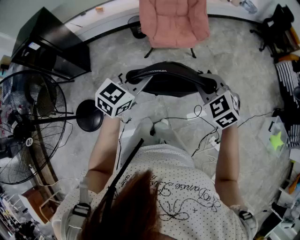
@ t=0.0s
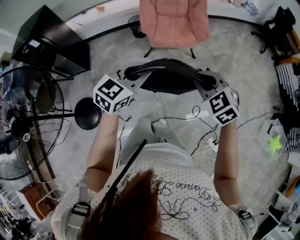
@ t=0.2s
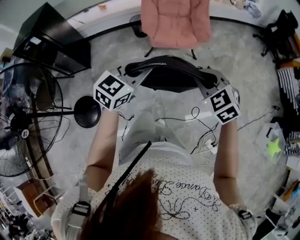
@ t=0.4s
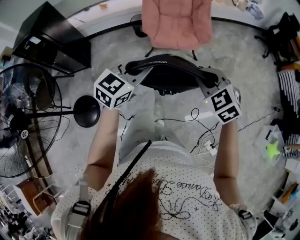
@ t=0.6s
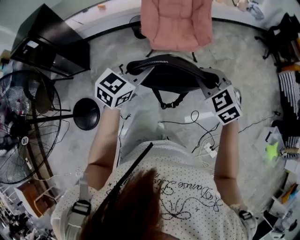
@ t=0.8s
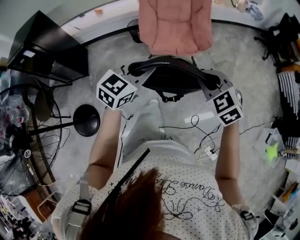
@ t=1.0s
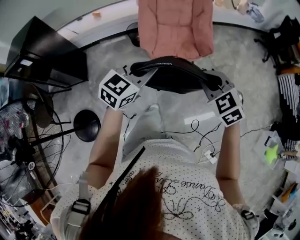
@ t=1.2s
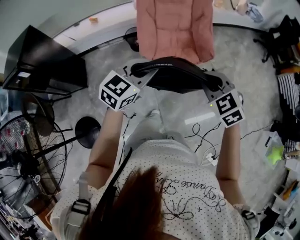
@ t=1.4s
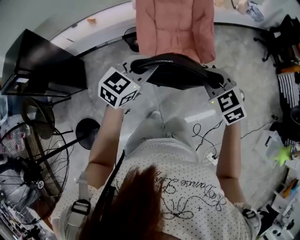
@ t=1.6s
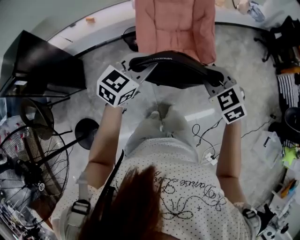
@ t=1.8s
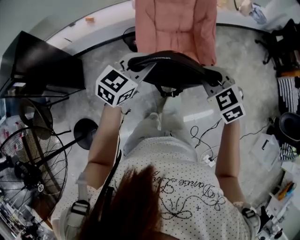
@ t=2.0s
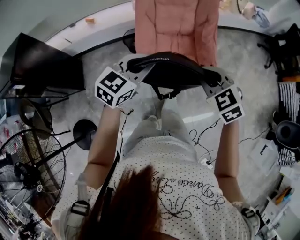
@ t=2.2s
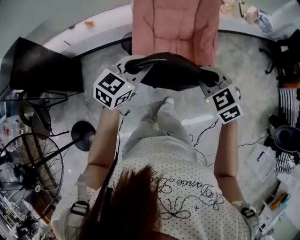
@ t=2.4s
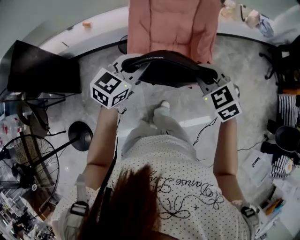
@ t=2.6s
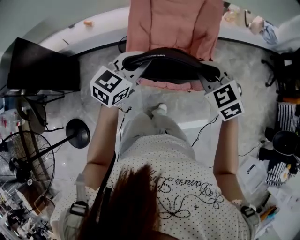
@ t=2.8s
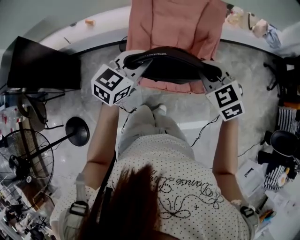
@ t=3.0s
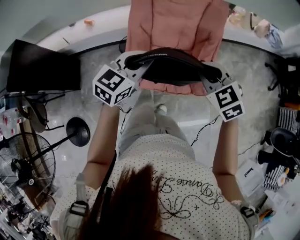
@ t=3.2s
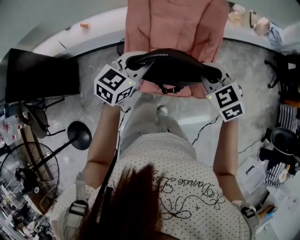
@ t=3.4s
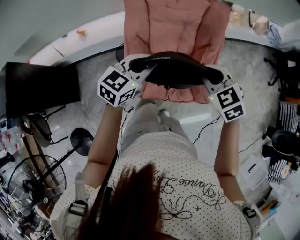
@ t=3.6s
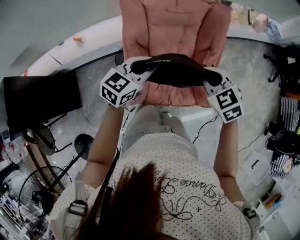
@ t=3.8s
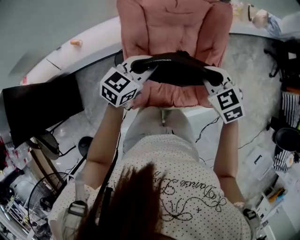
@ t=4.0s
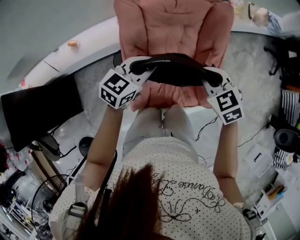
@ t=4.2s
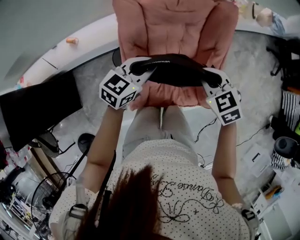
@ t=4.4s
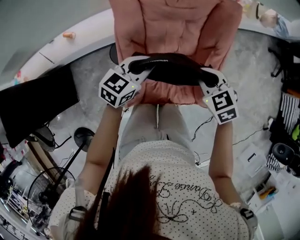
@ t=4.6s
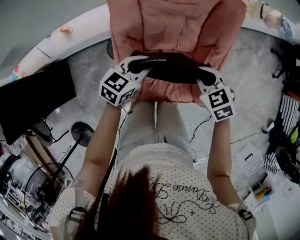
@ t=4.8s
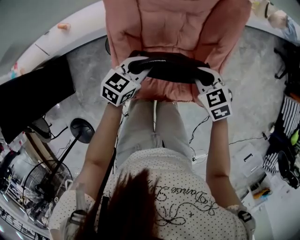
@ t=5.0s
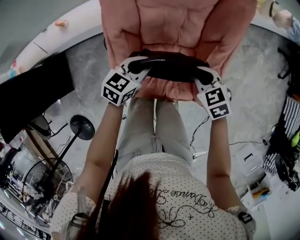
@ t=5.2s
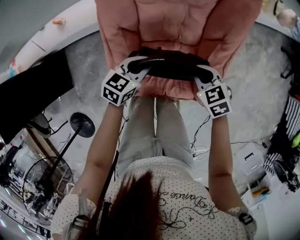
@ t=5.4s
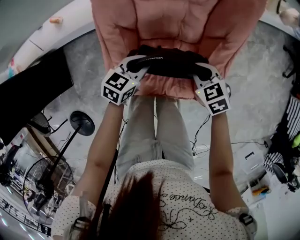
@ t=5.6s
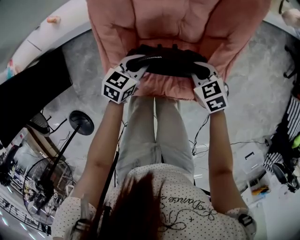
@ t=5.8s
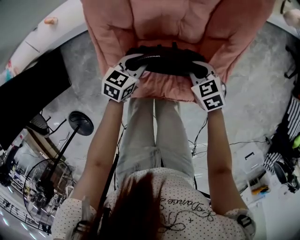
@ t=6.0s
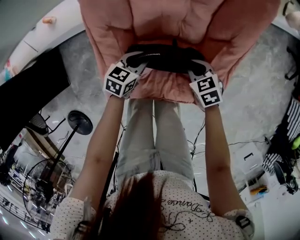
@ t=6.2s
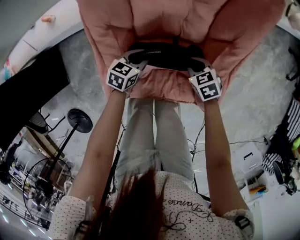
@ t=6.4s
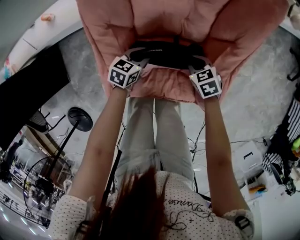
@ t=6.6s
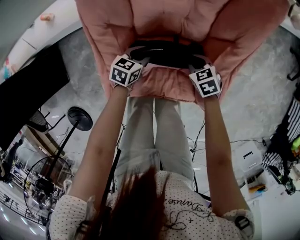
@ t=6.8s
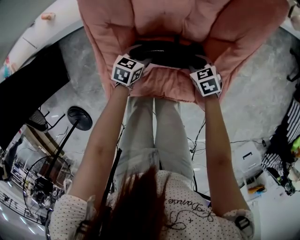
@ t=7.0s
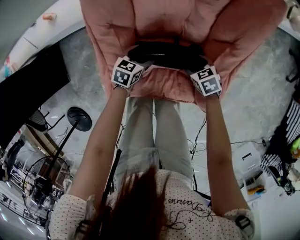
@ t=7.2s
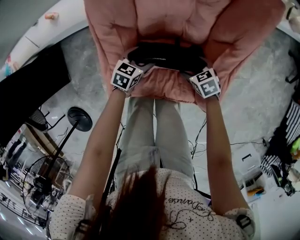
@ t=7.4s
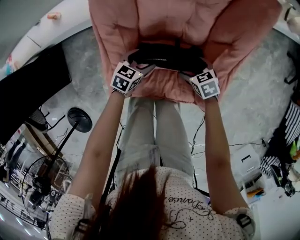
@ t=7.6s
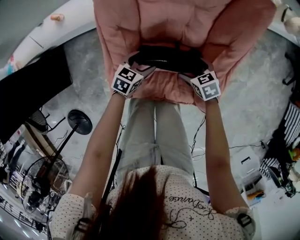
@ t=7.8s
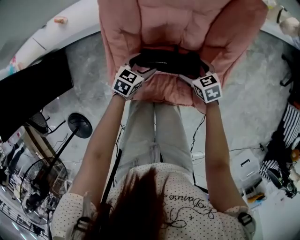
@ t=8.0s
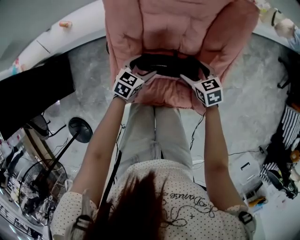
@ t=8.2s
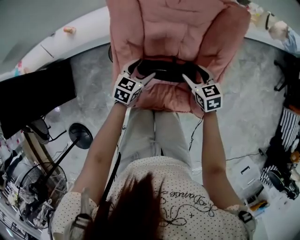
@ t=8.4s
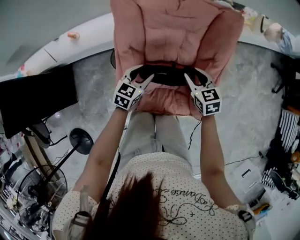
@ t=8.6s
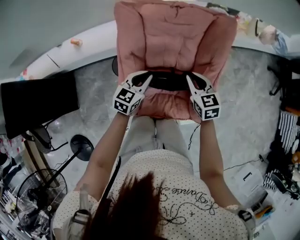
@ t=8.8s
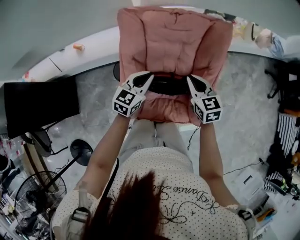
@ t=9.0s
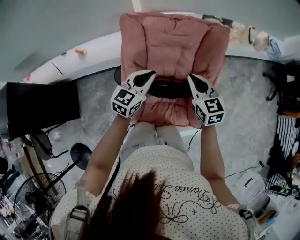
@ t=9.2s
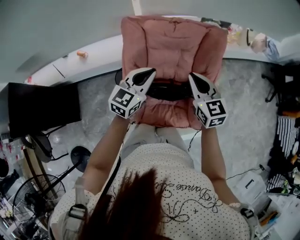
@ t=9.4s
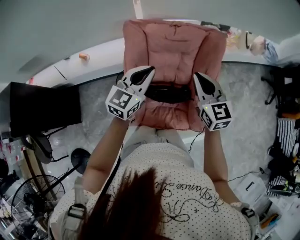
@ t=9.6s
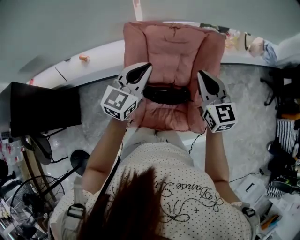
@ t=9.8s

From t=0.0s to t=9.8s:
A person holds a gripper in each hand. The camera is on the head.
From t=0.0s to t=1.4s: The grippers both shift forward by about 25 cm.
From t=1.4s to t=2.8s: Both grippers move forward, approximately 25 cm.
From t=2.8s to t=4.2s: The grippers both shift forward by approximately 20 cm.
From t=4.2s to t=5.6s: The two grippers go about 20 cm downward. The left gripper changes its angle by approximately 20 degrees.
From t=5.6s to t=7.0s: Both grippers travel together downward, some 15 cm. The left gripper opens up.
From t=7.0s to t=8.4s: The two grippers go approximately 15 cm upward. The right gripper changes its angle by about 20 degrees, and opens its fingers; the left gripper opens up.
From t=8.4s to t=9.8s: The two grippers go some 30 cm upward. The left gripper tilts its fingers about 30 degrees upward, and closes. The right gripper angles its fingers upward, by some 30 degrees, and closes its fingers.

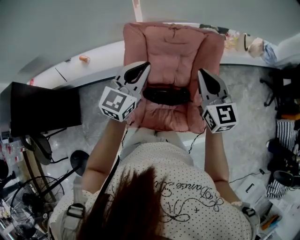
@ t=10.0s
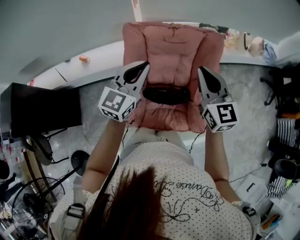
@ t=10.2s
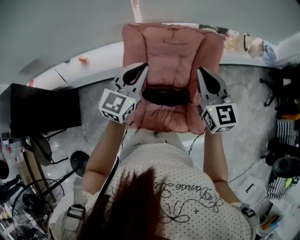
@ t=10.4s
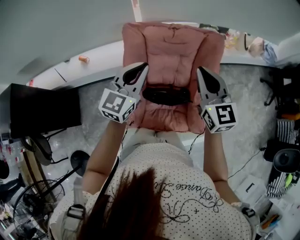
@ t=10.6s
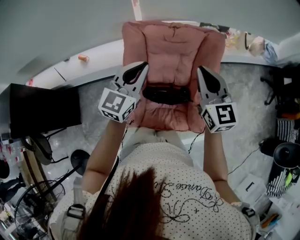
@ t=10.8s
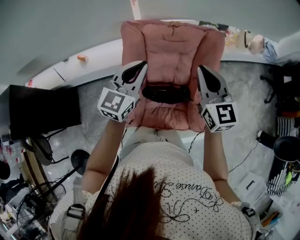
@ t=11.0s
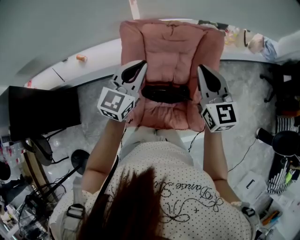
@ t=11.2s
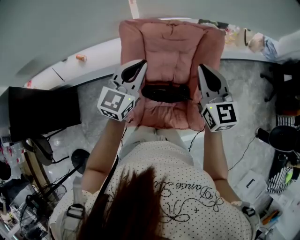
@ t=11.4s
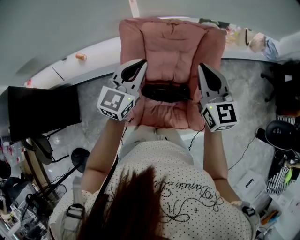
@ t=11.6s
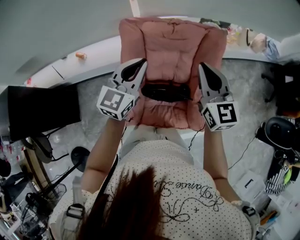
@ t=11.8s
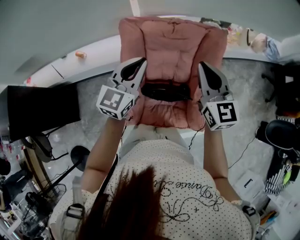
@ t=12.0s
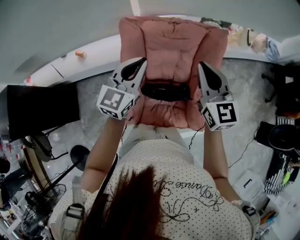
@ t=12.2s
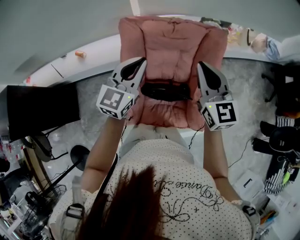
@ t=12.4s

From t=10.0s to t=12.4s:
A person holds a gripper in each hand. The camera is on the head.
From t=10.0s to t=12.4s: There are only small adjustments of the grippers.

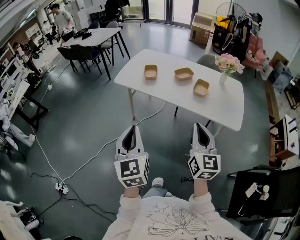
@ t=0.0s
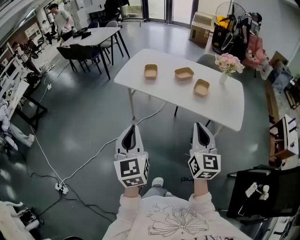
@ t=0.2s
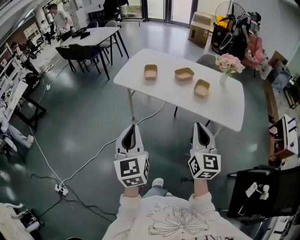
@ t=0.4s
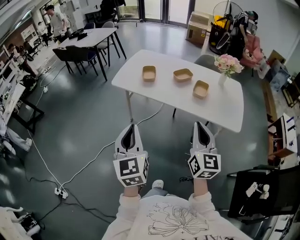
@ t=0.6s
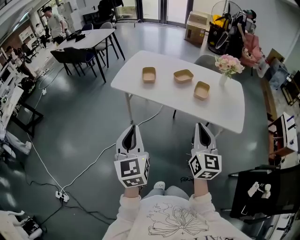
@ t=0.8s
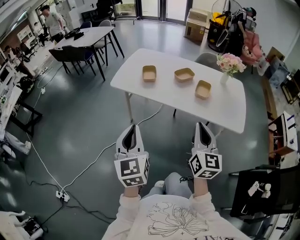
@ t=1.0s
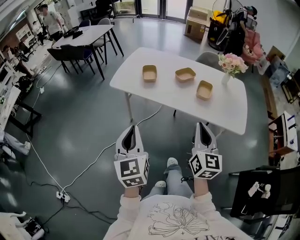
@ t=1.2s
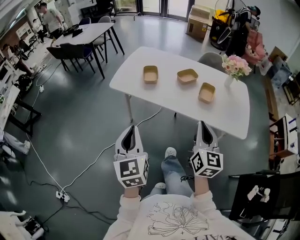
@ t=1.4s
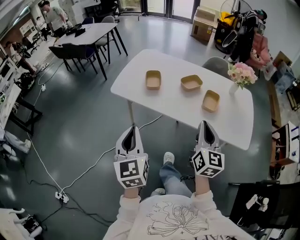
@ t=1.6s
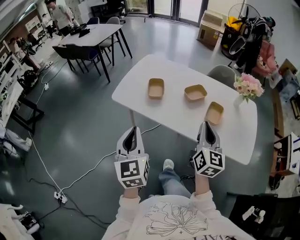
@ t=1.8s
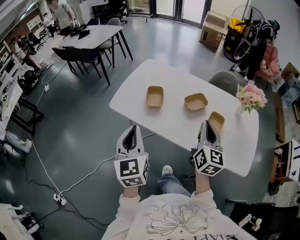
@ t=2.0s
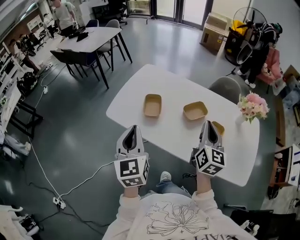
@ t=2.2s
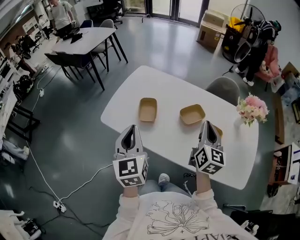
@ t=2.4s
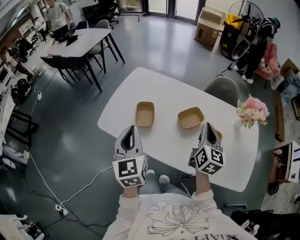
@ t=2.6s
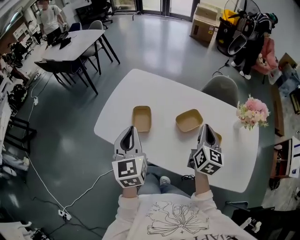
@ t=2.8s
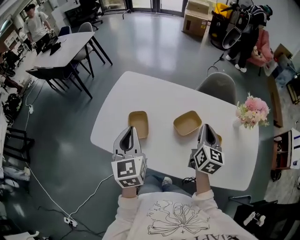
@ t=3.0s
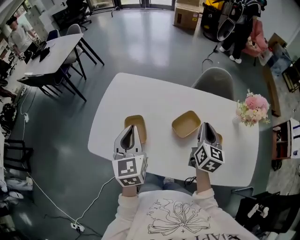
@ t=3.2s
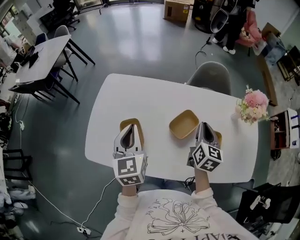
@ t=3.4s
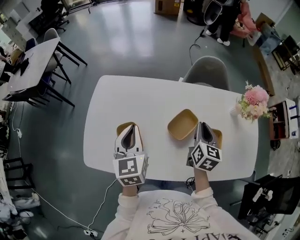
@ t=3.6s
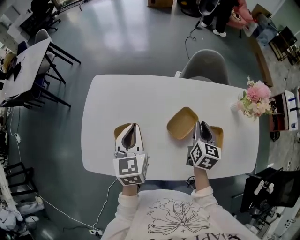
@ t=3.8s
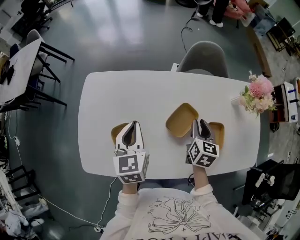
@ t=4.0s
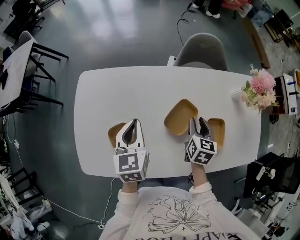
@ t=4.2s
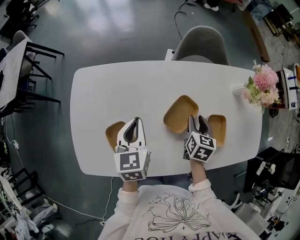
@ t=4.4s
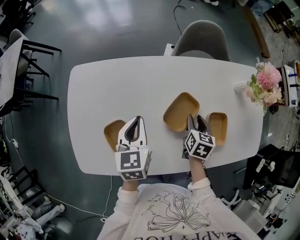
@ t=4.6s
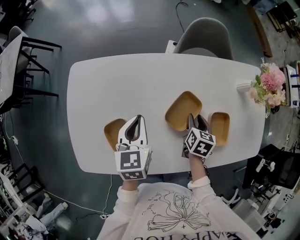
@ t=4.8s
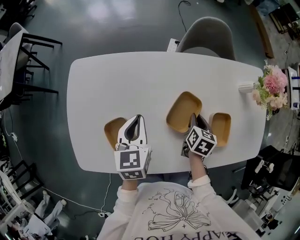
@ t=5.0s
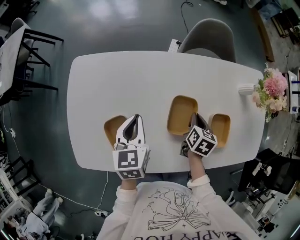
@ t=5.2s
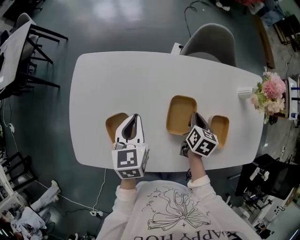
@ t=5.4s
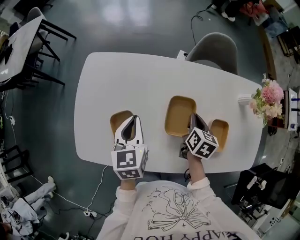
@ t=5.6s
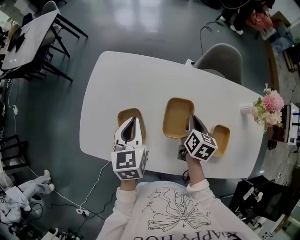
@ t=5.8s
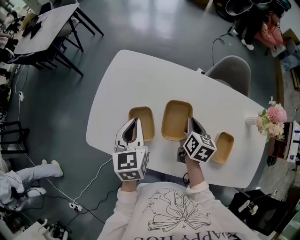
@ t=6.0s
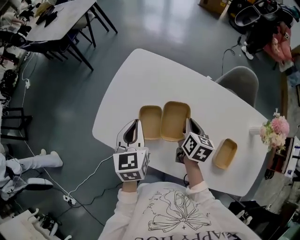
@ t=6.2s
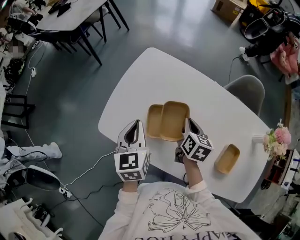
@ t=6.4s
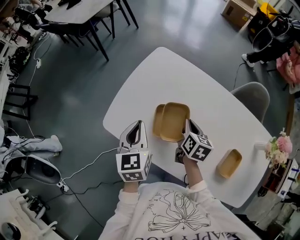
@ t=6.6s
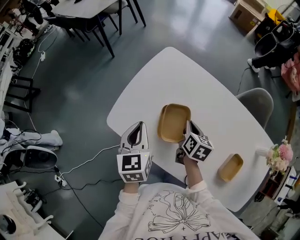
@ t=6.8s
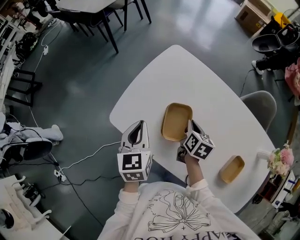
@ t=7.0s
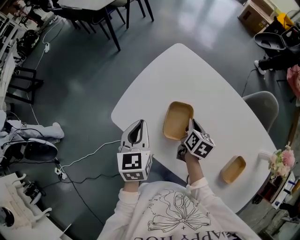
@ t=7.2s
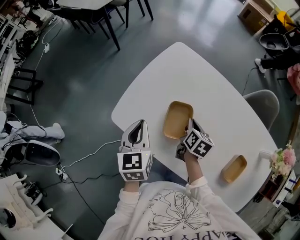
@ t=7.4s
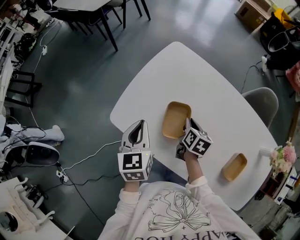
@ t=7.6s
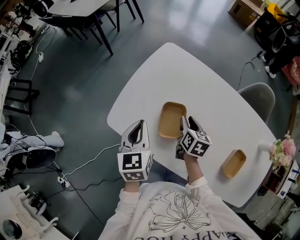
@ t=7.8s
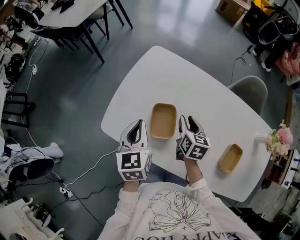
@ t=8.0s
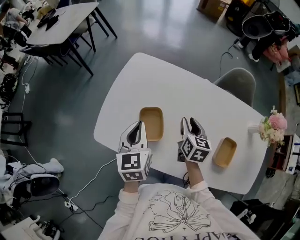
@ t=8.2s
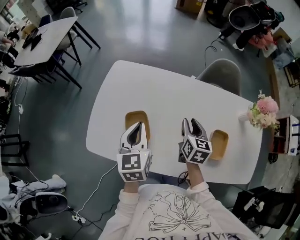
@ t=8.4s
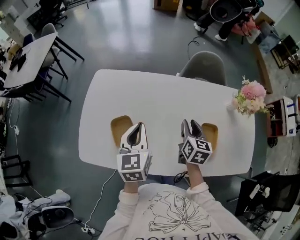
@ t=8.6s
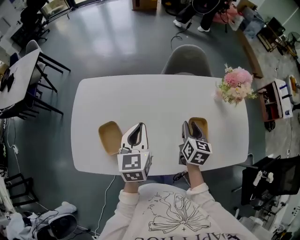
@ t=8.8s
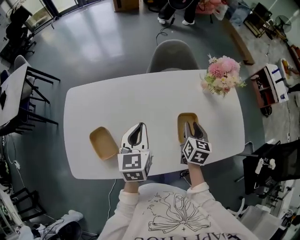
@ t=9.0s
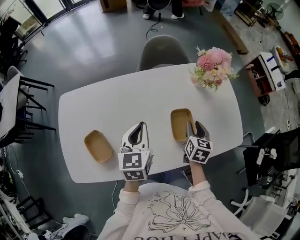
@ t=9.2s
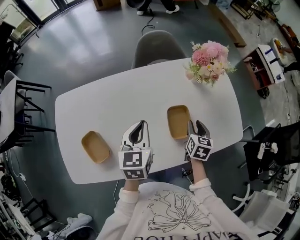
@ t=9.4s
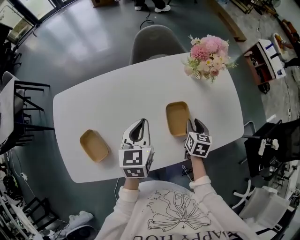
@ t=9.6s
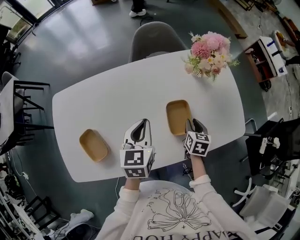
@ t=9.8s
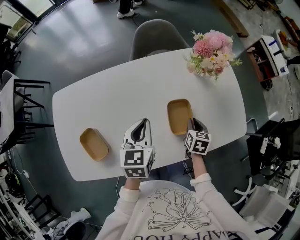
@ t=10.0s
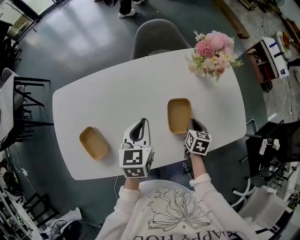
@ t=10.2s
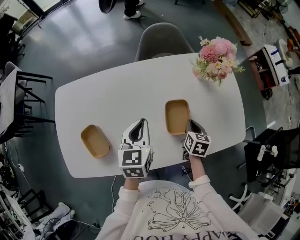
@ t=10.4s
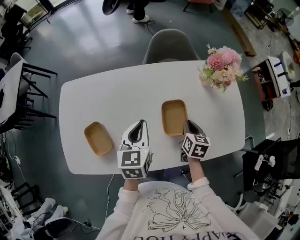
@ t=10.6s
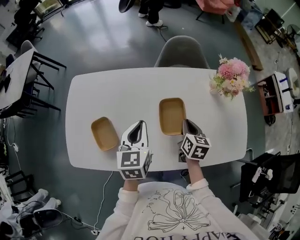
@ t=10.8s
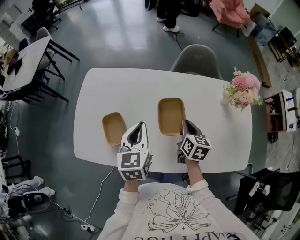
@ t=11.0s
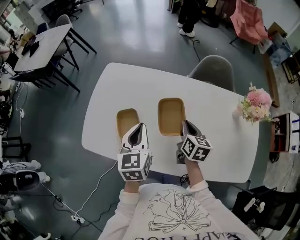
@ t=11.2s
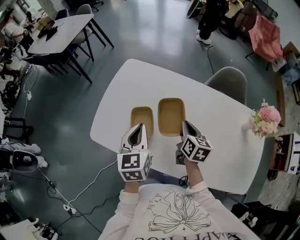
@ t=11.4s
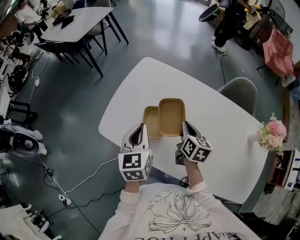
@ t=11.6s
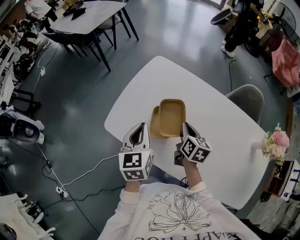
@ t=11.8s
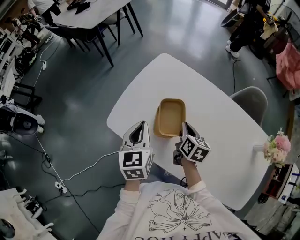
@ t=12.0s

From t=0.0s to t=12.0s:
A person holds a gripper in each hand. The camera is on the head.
From t=0.0s to t=1.6s: Both grippers travel together forward, some 20 cm.
From t=1.6s to t=3.0s: Both grippers travel together forward, some 40 cm.
From t=3.0s to t=4.4s: The left gripper heads forward and downward, covering roughly 25 cm, and turns by some 30 degrees. Meanwhile the right gripper moves downward, some 20 cm, changes its angle by approximately 30 degrees, and opens.
From t=4.4s to t=6.0s: The left gripper ends up some 10 cm from where it was, and swivels approximately 20 degrees. The right gripper ends up roughly 10 cm from where it was, swivels some 20 degrees, and closes its fingers.
From t=6.0s to t=7.6s: The two grippers go roughly 15 cm to the left.
From t=7.6s to t=9.0s: The left gripper ends up approximately 35 cm from where it was, and rotates some 50 degrees. The right gripper shifts by about 40 cm, turns by some 40 degrees, and opens up.
From t=9.0s to t=10.4s: The right gripper travels downward and to the right by roughly 10 cm, and closes. The left gripper moves to the right, approximately 5 cm.
From t=10.4s to t=12.0s: The right gripper changes place by roughly 40 cm, and rotates some 40 degrees. The left gripper moves approximately 40 cm, and swivels approximately 50 degrees.
